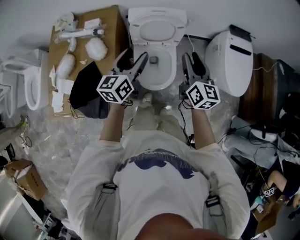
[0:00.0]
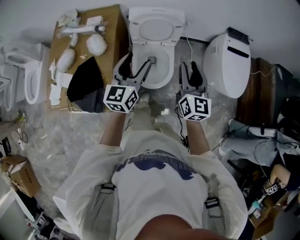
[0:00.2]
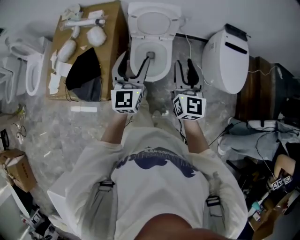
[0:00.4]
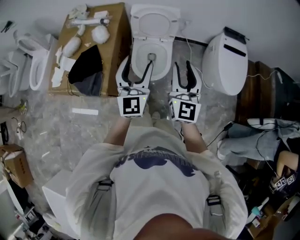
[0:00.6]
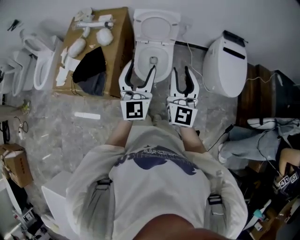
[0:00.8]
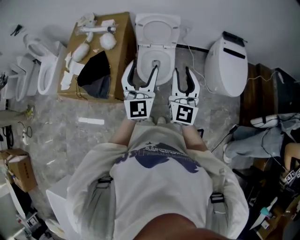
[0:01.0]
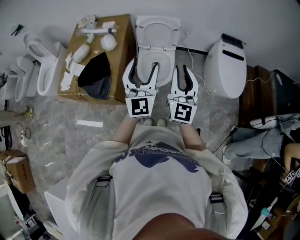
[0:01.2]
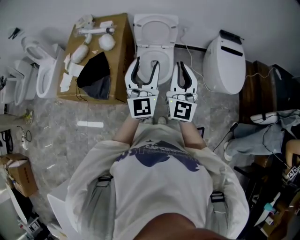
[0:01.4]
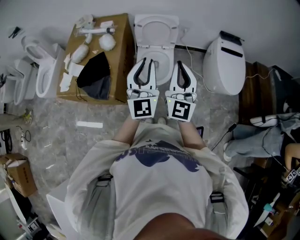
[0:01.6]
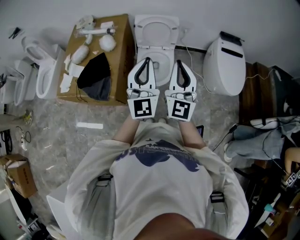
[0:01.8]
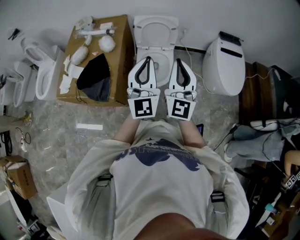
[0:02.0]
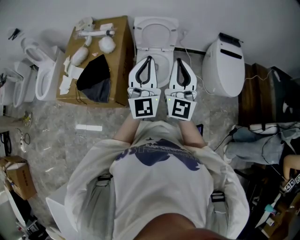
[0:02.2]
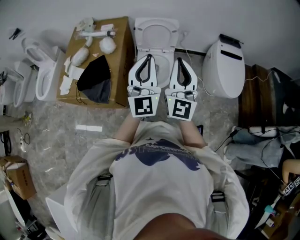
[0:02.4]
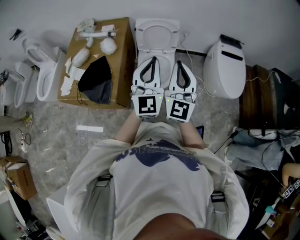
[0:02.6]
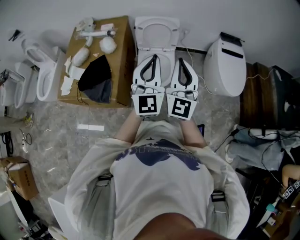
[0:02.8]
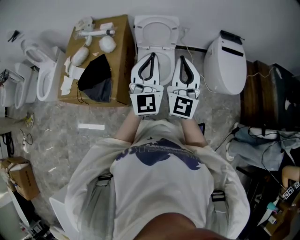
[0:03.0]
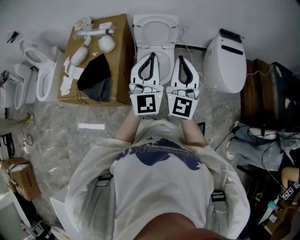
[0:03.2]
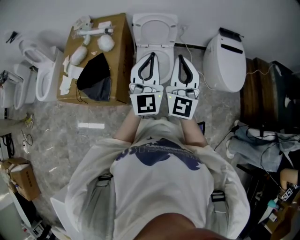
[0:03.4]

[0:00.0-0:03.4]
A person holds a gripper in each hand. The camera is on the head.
0.0 to 1.6 s: The two grippers go some 30 cm backward and upward. The right gripper turns by about 40 degrees, and closes up. Meanwhile the left gripper turns by about 50 degrees, and closes up.
1.6 to 3.4 s: The grippers move only a little.

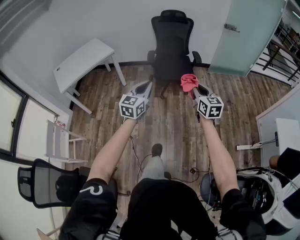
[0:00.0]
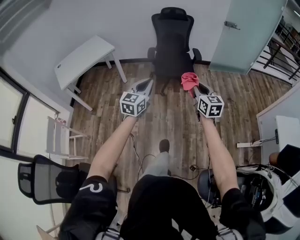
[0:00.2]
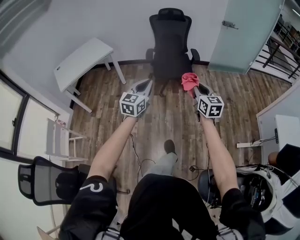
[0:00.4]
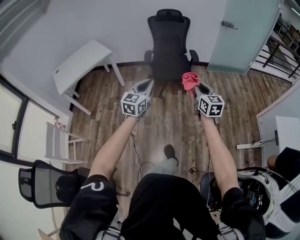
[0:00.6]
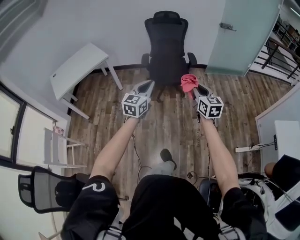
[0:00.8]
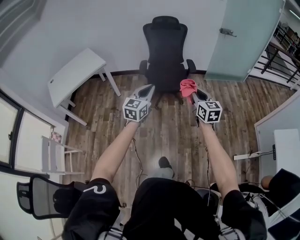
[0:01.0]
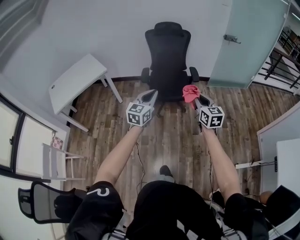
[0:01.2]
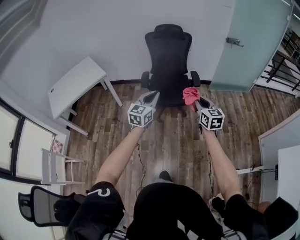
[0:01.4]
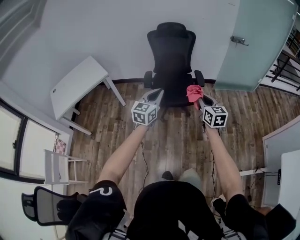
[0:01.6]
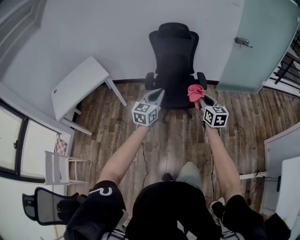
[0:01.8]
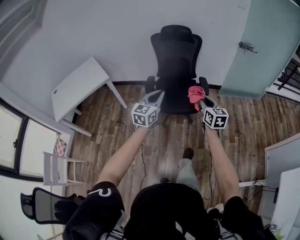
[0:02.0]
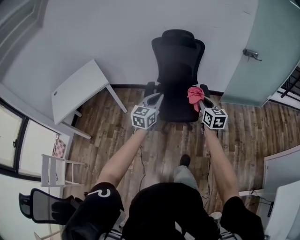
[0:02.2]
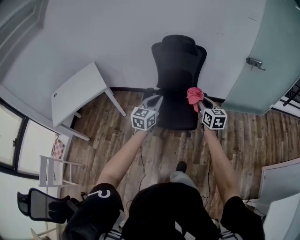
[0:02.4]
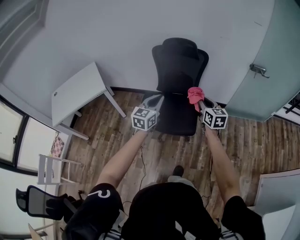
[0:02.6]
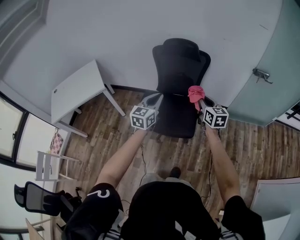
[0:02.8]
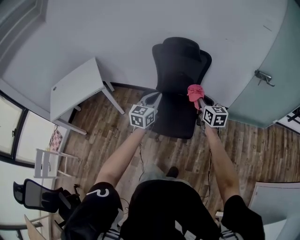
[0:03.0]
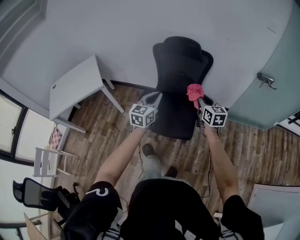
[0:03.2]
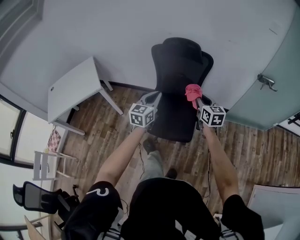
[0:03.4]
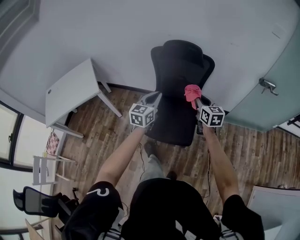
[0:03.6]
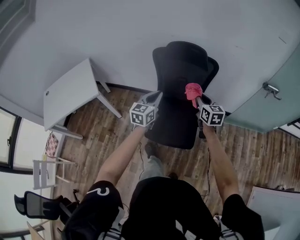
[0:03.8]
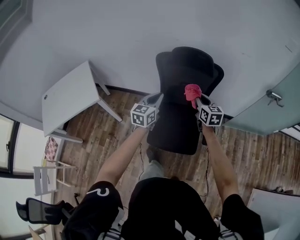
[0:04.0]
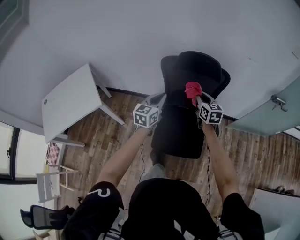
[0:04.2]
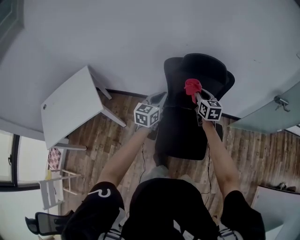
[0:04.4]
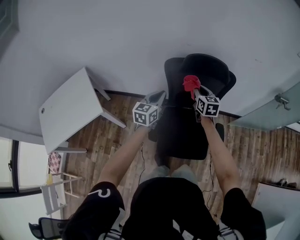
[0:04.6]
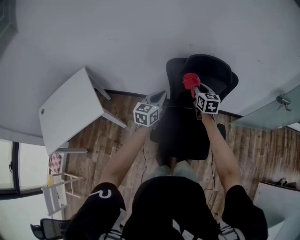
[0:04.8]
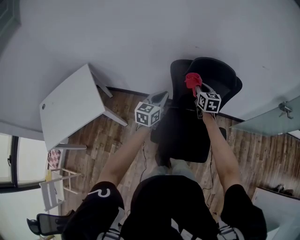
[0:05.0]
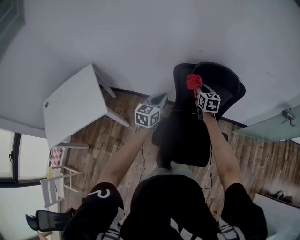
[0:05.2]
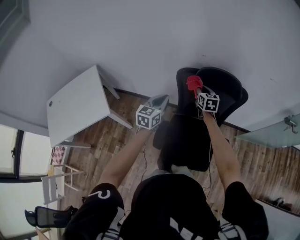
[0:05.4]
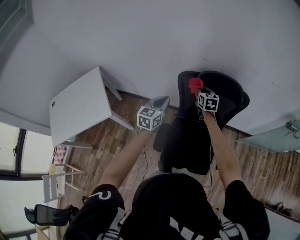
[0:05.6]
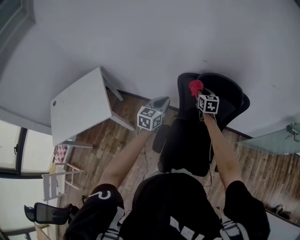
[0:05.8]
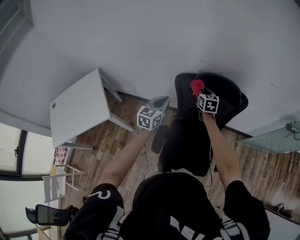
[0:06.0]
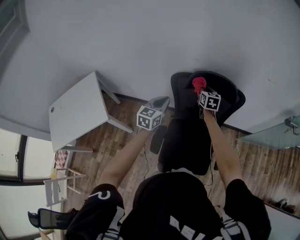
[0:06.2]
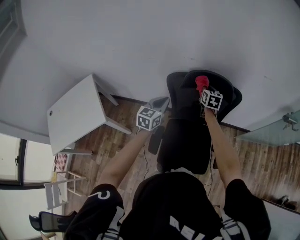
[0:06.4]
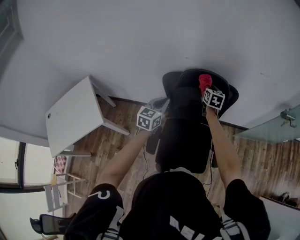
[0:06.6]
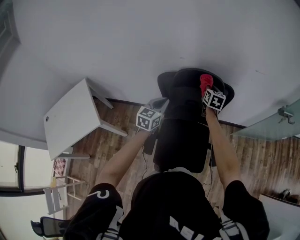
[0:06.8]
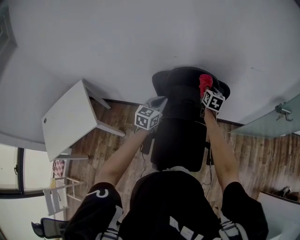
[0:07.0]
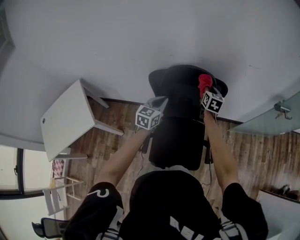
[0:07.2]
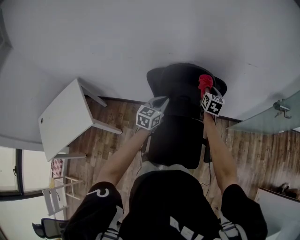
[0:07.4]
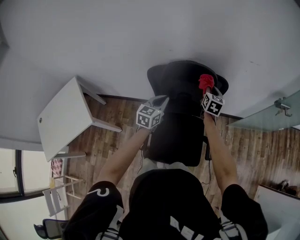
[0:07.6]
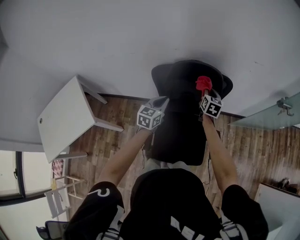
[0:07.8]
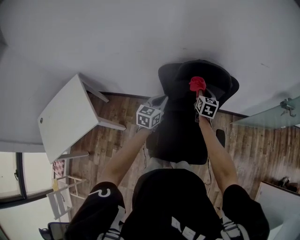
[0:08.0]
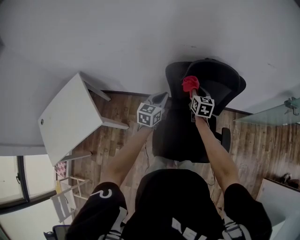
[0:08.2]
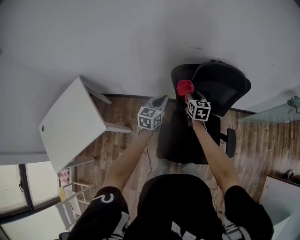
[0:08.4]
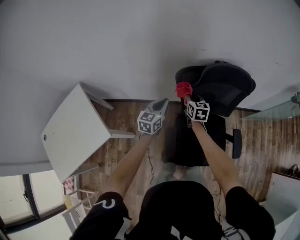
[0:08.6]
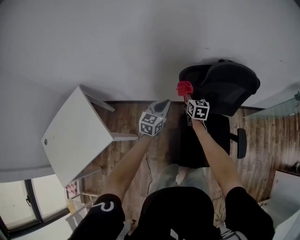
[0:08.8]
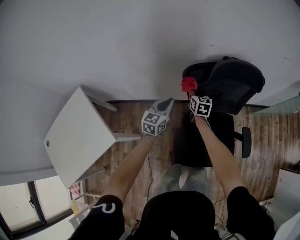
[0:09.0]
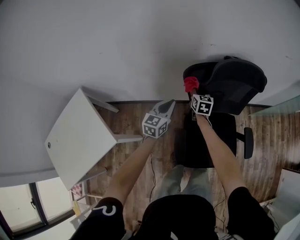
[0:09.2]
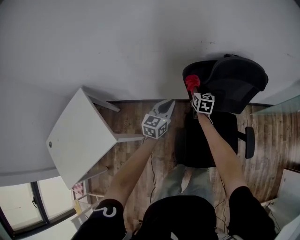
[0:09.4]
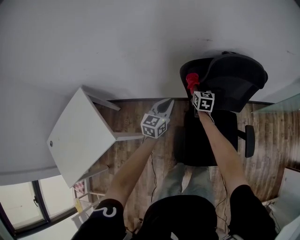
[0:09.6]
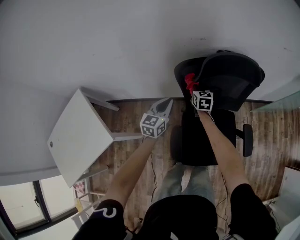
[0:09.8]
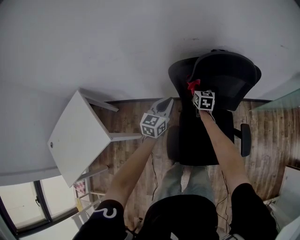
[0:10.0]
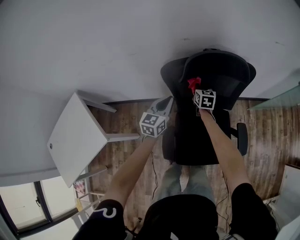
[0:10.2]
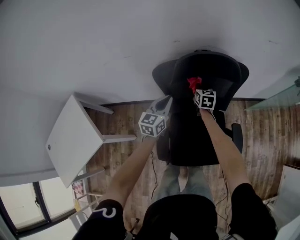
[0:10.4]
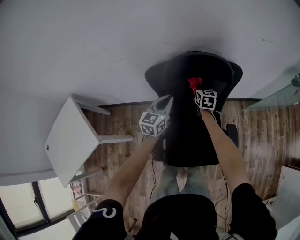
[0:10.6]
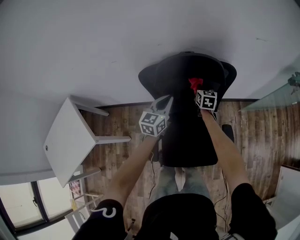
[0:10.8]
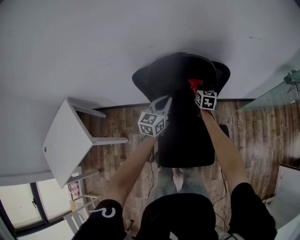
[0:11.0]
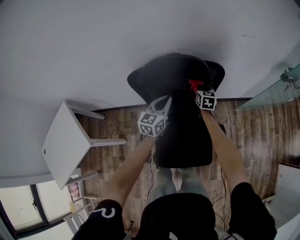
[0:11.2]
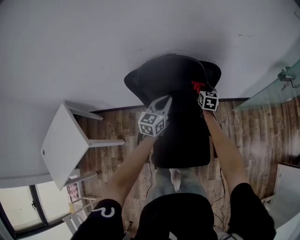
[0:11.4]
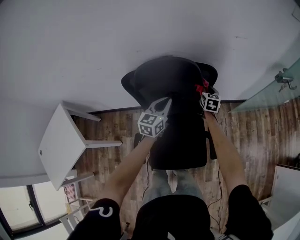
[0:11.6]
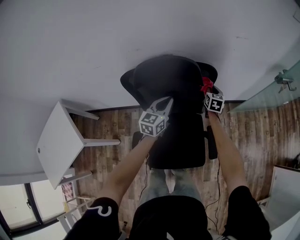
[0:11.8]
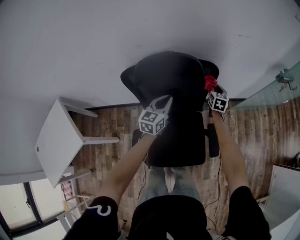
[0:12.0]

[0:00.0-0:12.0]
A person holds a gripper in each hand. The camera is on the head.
0.0 to 1.6 s: Both grippers travel together forward, roughly 30 cm.
1.6 to 3.0 s: The grippers both shift forward by some 40 cm.
3.0 to 4.4 s: Both grippers move forward and to the left, roughly 35 cm.
4.4 to 6.0 s: The right gripper goes approximately 20 cm forward. Meanwhile the left gripper shifts roughly 10 cm forward.
6.0 to 7.6 s: The left gripper heads to the right, covering about 15 cm. Meanwhile the right gripper moves to the right, roughly 20 cm, and rotates some 20 degrees.
7.6 to 9.0 s: The grippers both shift to the left and downward by approximately 30 cm.
9.0 to 10.4 s: The grippers both shift to the right by approximately 15 cm.
10.4 to 12.0 s: The right gripper heads to the right, covering about 25 cm, while the left gripper goes some 15 cm to the right.

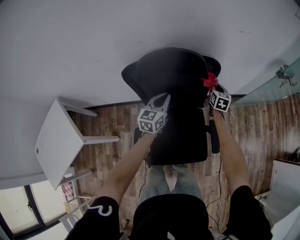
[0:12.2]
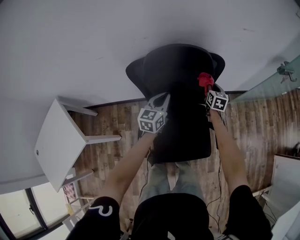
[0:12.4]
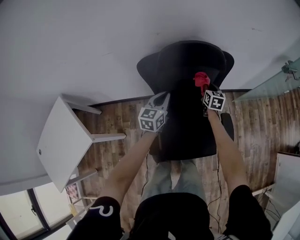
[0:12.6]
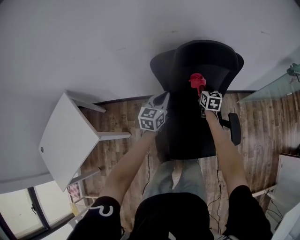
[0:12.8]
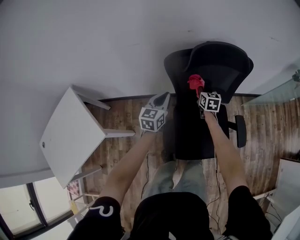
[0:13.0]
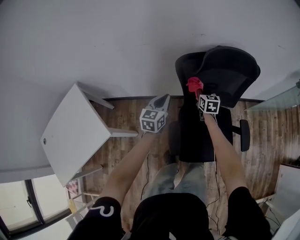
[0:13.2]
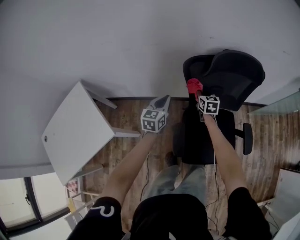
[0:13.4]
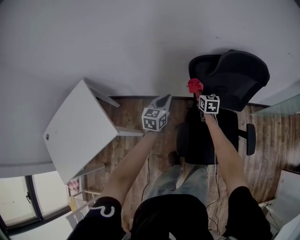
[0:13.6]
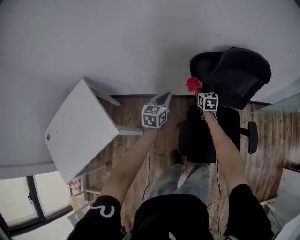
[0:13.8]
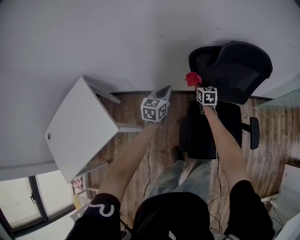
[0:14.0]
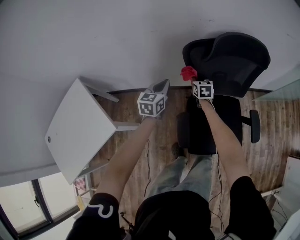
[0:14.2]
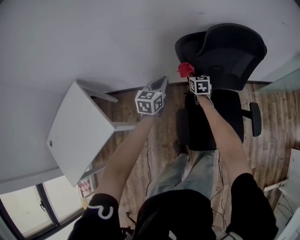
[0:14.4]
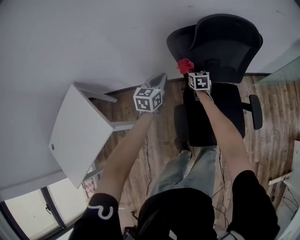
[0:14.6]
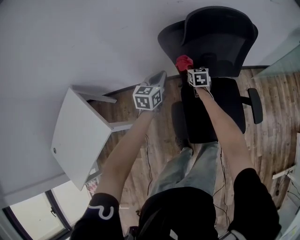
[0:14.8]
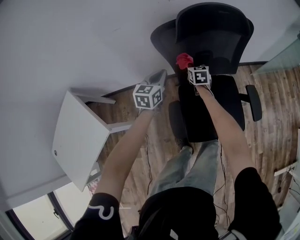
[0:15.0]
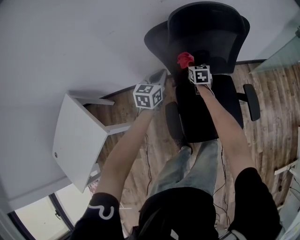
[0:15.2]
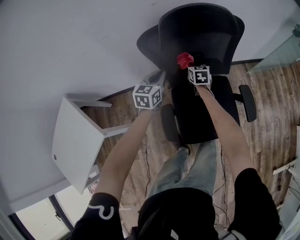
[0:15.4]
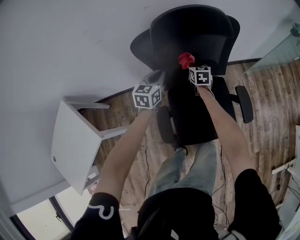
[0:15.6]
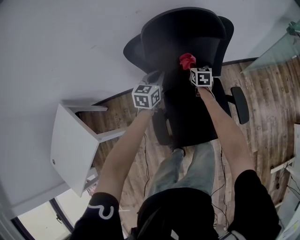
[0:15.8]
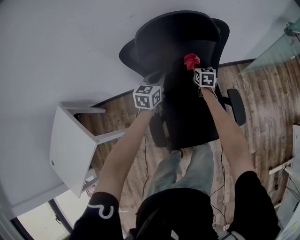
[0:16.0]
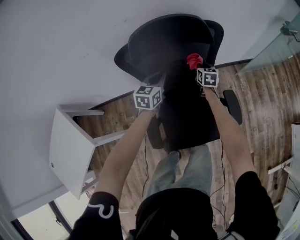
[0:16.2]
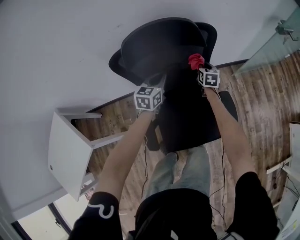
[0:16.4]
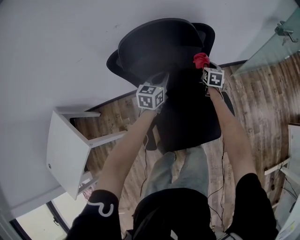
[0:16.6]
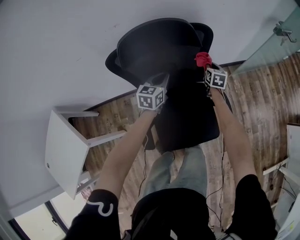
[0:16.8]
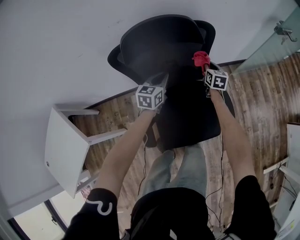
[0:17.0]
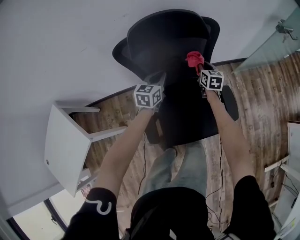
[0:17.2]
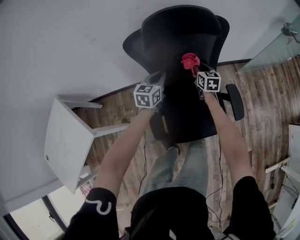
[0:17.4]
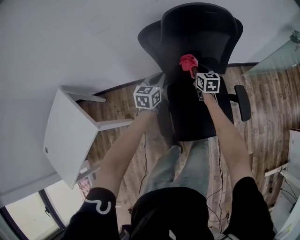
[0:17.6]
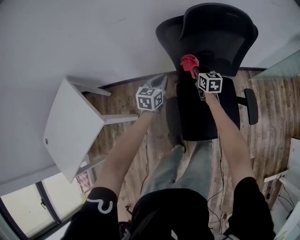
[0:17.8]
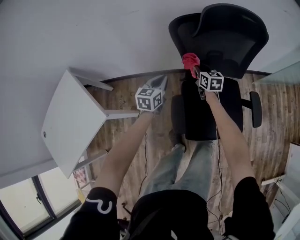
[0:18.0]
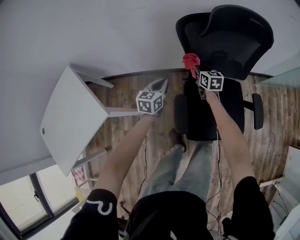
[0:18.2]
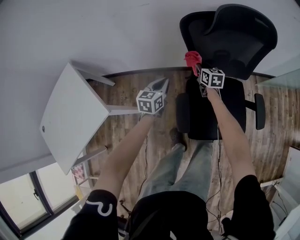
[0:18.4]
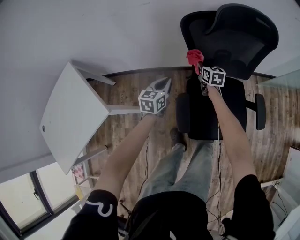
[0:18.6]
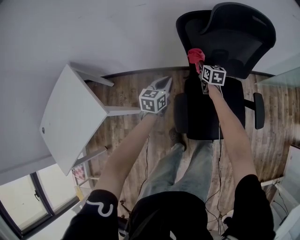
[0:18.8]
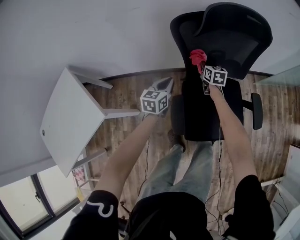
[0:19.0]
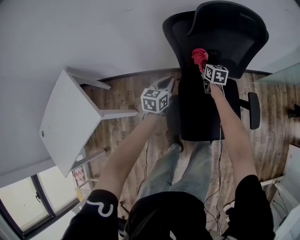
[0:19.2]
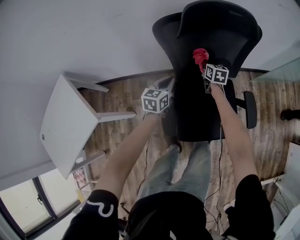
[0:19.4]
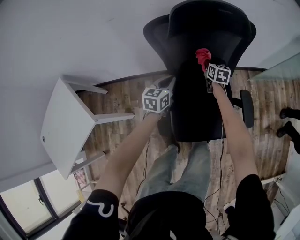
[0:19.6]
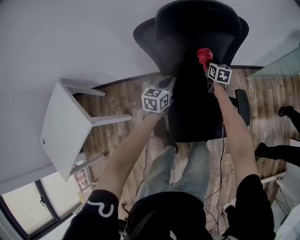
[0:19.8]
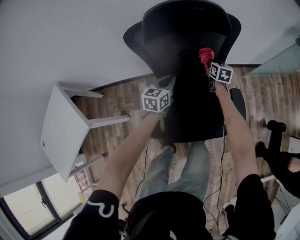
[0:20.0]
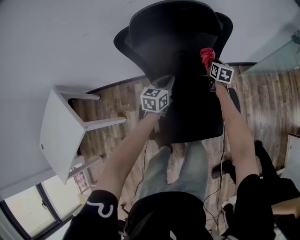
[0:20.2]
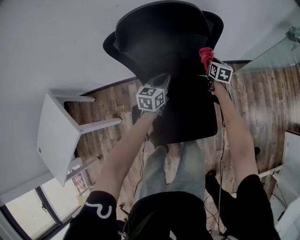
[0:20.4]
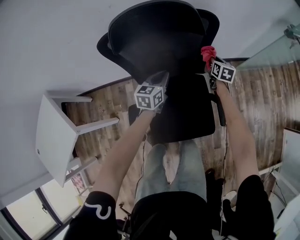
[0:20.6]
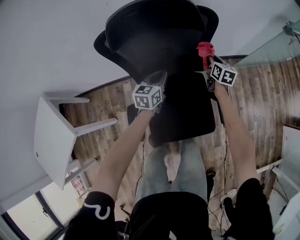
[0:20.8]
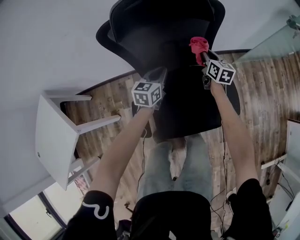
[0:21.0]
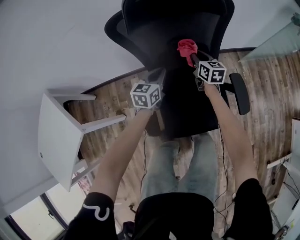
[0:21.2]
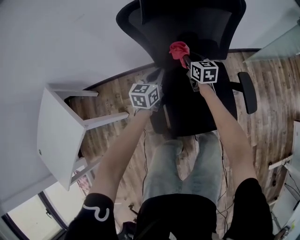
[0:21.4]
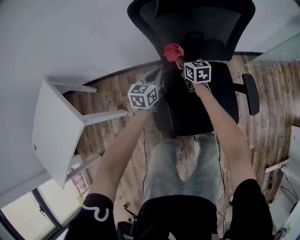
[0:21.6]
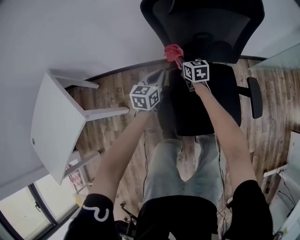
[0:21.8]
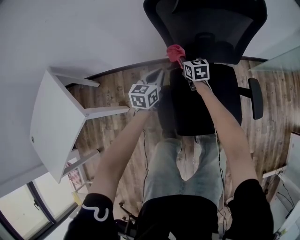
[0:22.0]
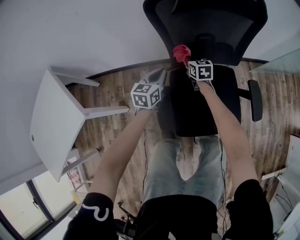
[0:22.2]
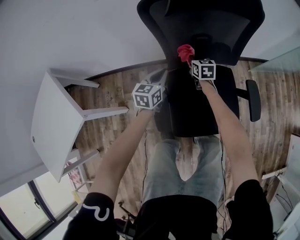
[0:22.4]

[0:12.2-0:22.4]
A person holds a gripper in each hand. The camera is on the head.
12.2 to 13.6 s: Both grippers travel together to the left, some 35 cm. The right gripper rotates about 20 degrees.
13.6 to 15.2 s: The right gripper shifts some 15 cm to the right and downward, while the left gripper shifts roughly 15 cm to the right.
15.2 to 16.6 s: The left gripper goes some 20 cm to the right and forward, while the right gripper moves to the right, about 30 cm.
16.6 to 18.0 s: Both grippers move to the left and backward, about 35 cm. The right gripper changes its angle by roughly 30 degrees.
18.0 to 19.4 s: The right gripper heads to the right and forward, covering roughly 15 cm; the left gripper heads to the right, covering roughly 10 cm.
19.4 to 21.0 s: The left gripper goes some 15 cm to the right and forward, while the right gripper moves to the right, roughly 20 cm.
21.0 to 22.4 s: The left gripper moves to the left, roughly 15 cm; the right gripper is displaced to the left and downward by some 25 cm, and swivels some 20 degrees.
